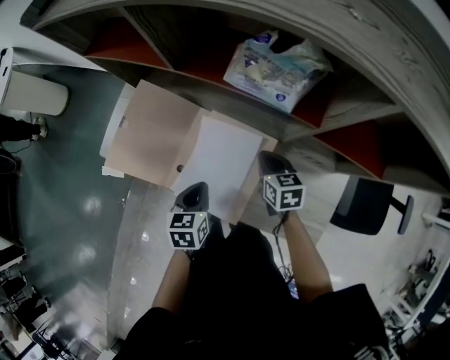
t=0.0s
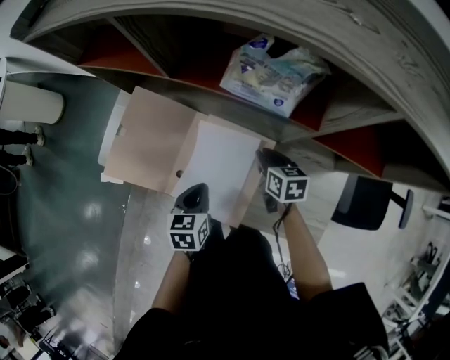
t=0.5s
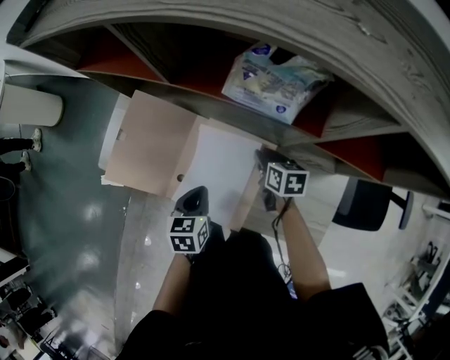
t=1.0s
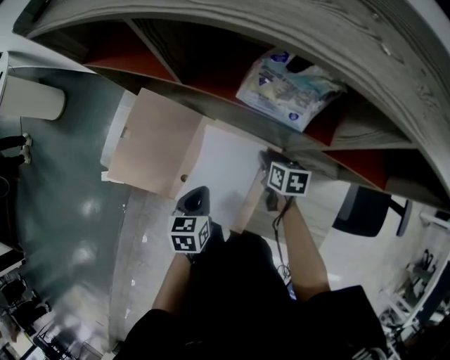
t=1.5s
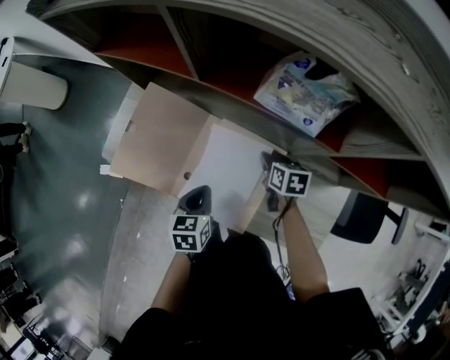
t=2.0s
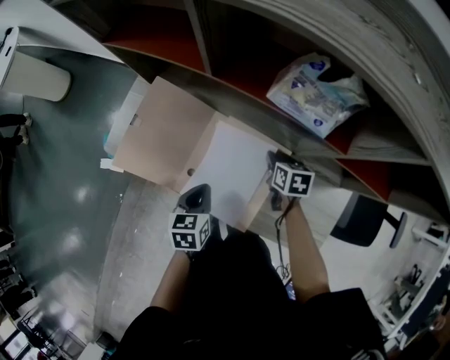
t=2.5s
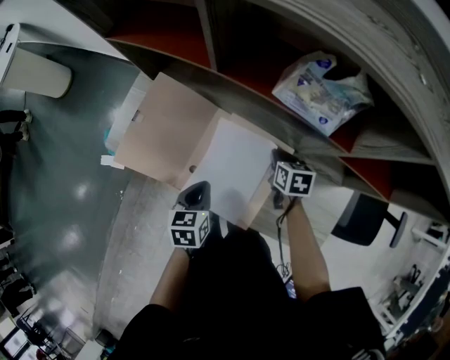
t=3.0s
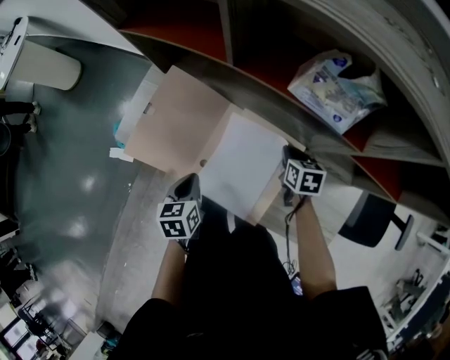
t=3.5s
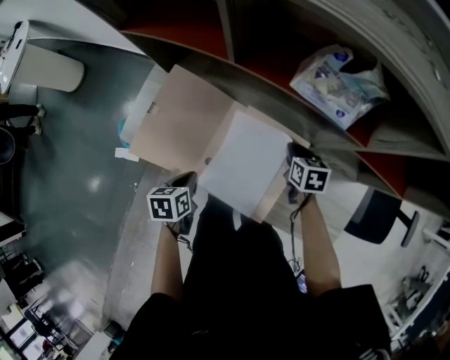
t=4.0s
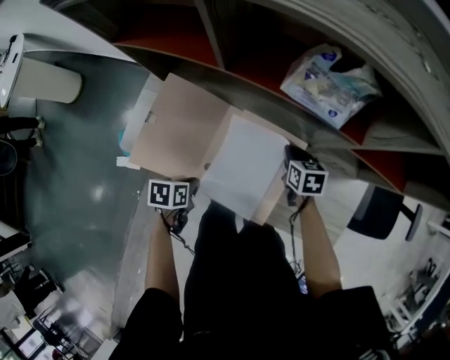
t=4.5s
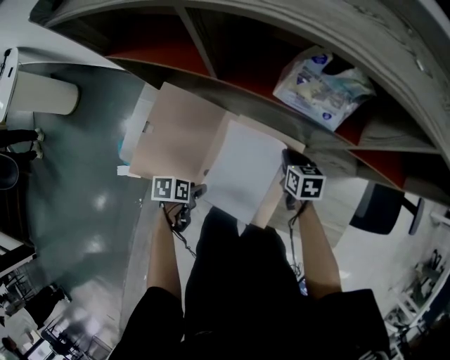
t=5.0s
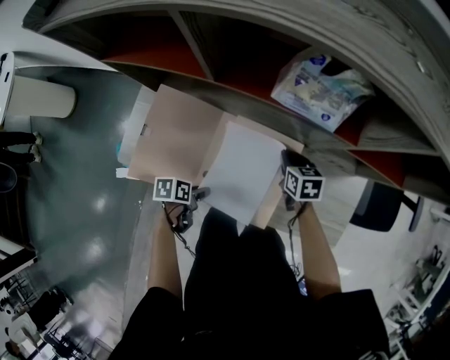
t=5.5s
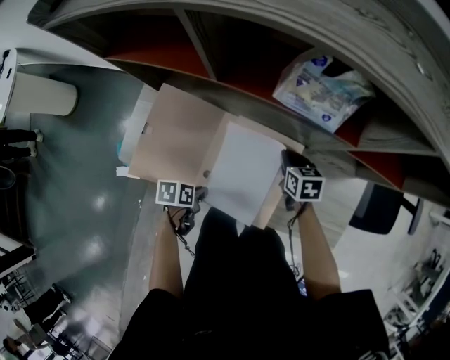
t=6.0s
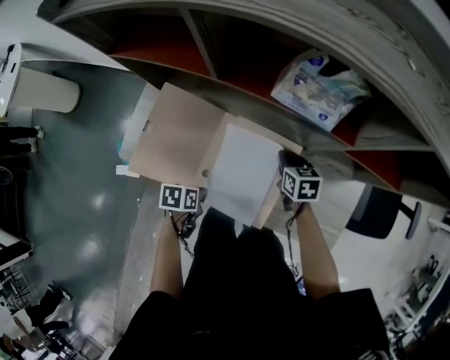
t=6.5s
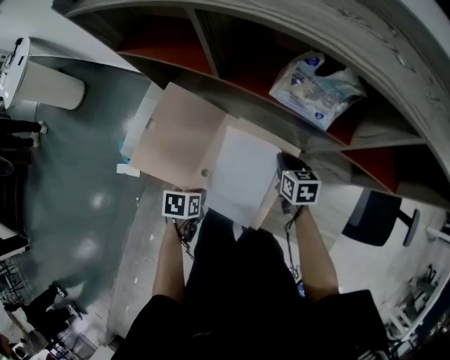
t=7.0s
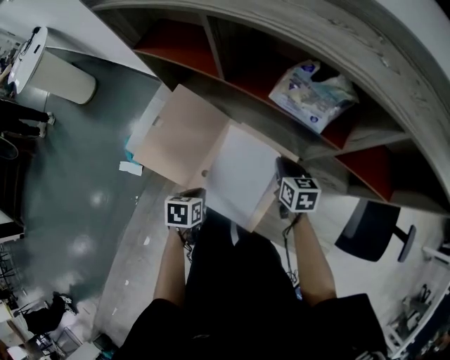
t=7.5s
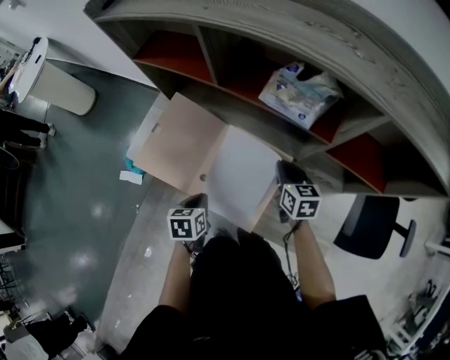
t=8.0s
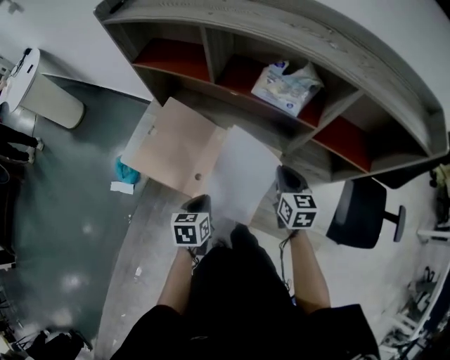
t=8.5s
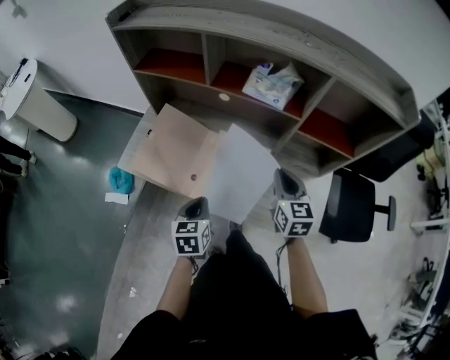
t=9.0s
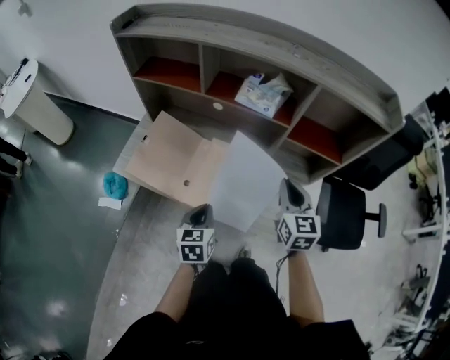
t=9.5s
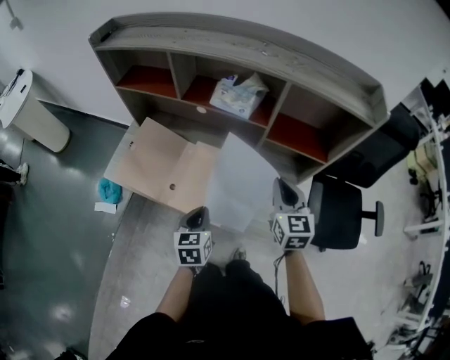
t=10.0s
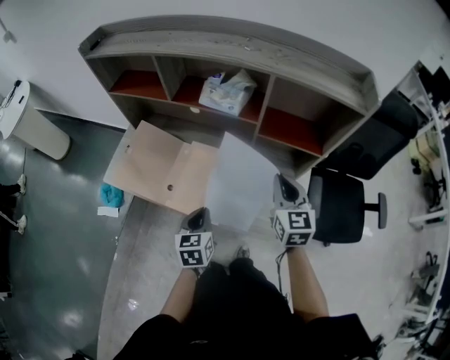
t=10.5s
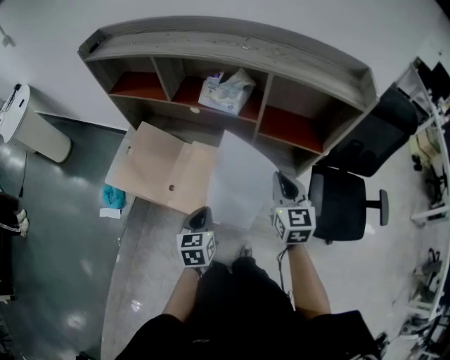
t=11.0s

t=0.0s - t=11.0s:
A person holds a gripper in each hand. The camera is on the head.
t=0.0s - t=2.0s: The right gripper moves some 5 cm, and opens up.
t=2.0s - t=3.5s: The left gripper goes some 10 cm to the left. The right gripper closes up.
t=3.5s - t=5.5s: The left gripper goes roughly 10 cm downward, rotates some 50 degrees, and opens its fingers.
t=5.5s - t=7.5s: Both grippers move upward, roughly 5 cm. The left gripper rotates roughly 30 degrees, and closes.
t=7.5s - t=9.0s: The left gripper moves upward and backward, roughly 15 cm, and changes its angle by about 30 degrees. The right gripper goes roughly 20 cm upward and backward, and turns by approximately 30 degrees.
t=9.0s - t=11.0s: The right gripper heads to the right and upward, covering some 10 cm. The left gripper goes about 10 cm to the right.

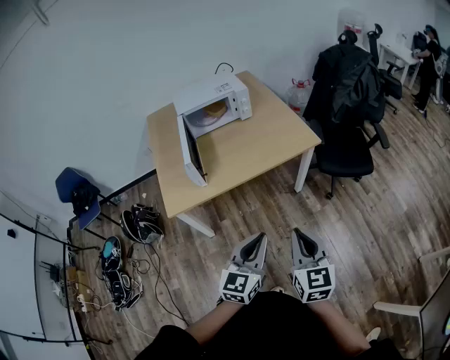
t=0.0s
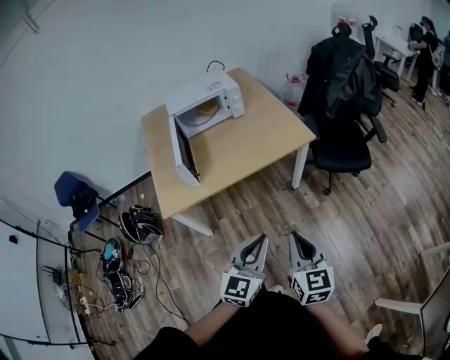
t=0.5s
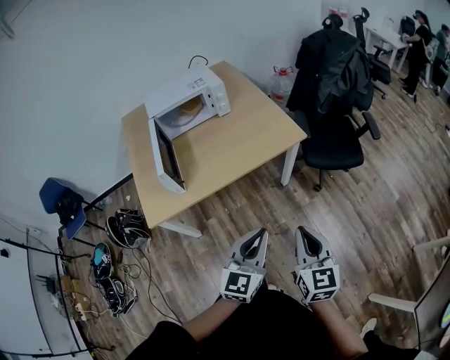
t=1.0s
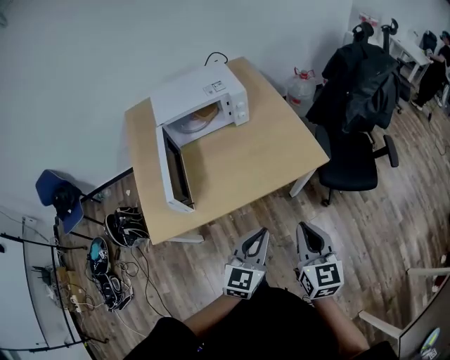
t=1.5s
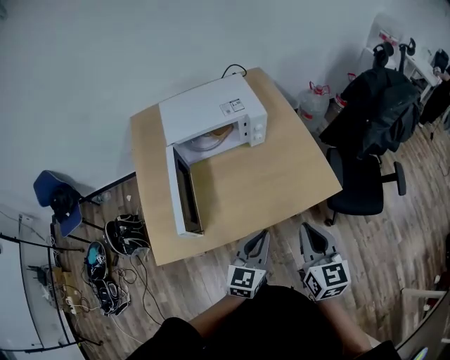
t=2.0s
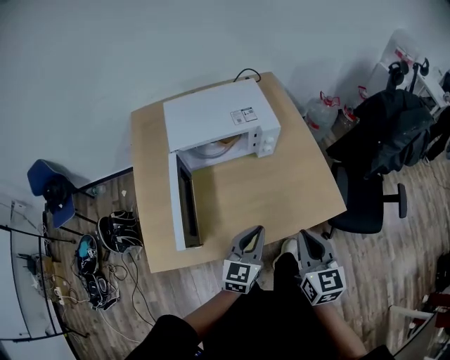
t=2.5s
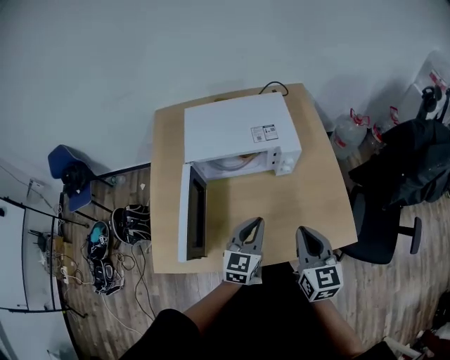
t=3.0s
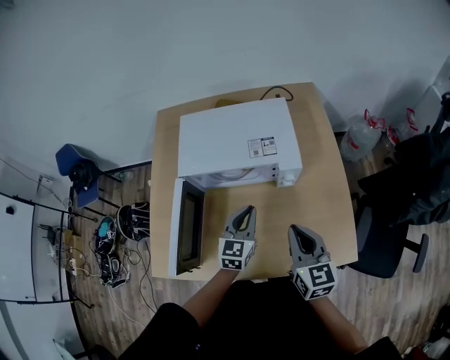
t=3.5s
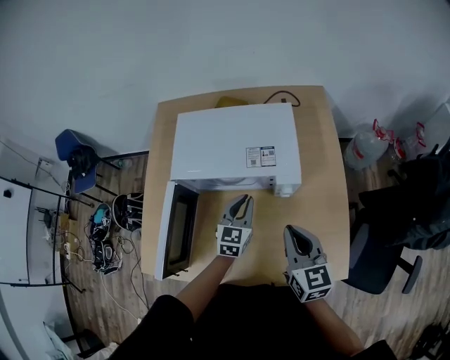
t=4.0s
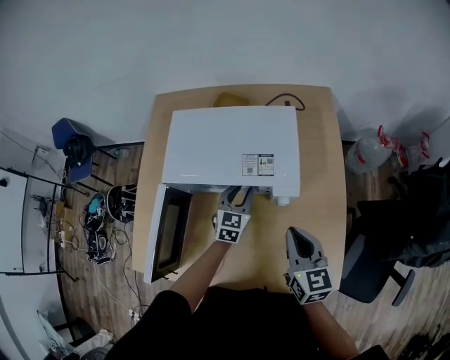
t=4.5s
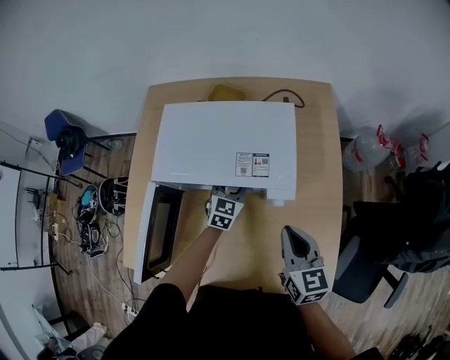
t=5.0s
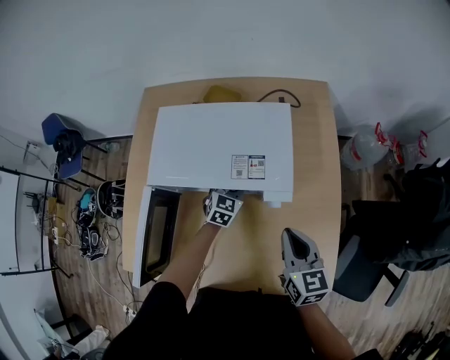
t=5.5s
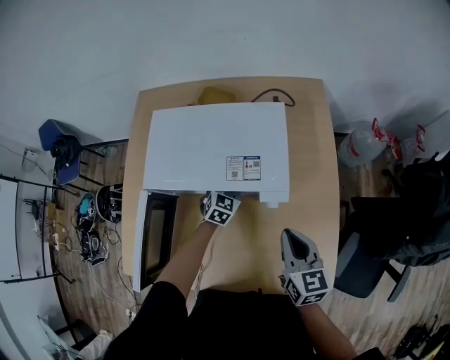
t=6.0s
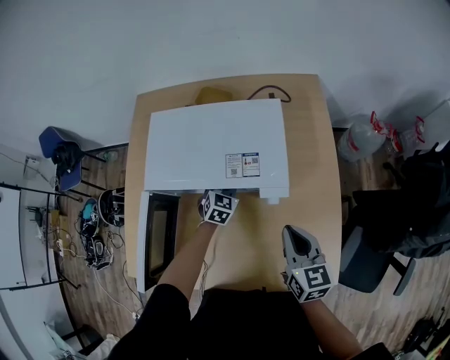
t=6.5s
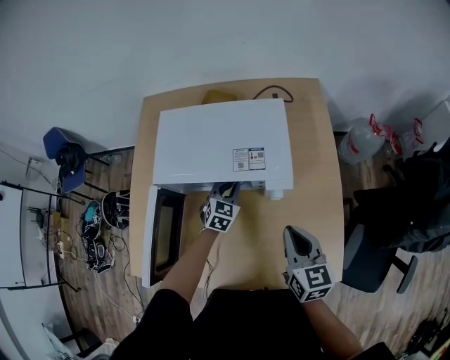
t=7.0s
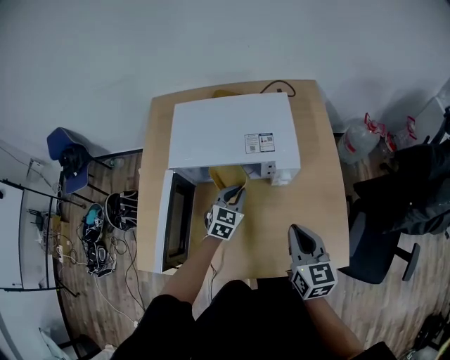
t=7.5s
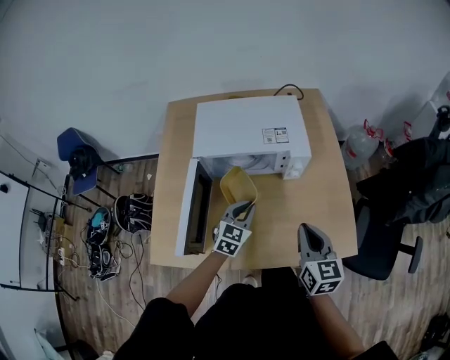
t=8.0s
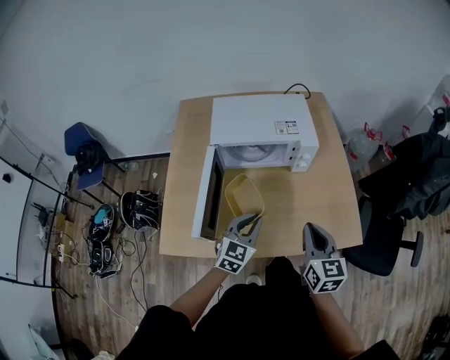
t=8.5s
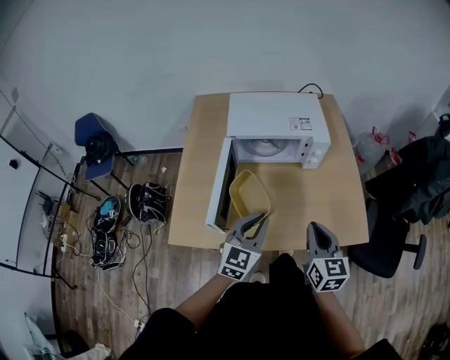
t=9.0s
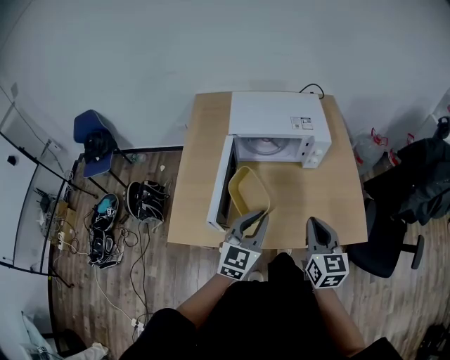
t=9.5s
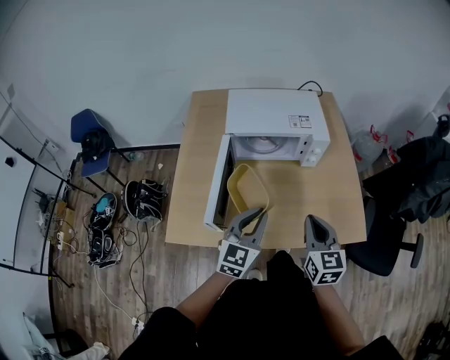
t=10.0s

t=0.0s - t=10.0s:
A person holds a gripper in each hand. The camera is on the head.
t=0.0s - t=2.0s: Both grippers travel together forward, some 35 cm.
t=2.0s - t=4.0s: The right gripper ends up roughly 30 cm from where it was, and changes its angle by approximately 30 degrees, while the left gripper ends up some 40 cm from where it was, and changes its angle by approximately 30 degrees.
t=4.0s - t=6.0s: The right gripper shifts some 5 cm forward. Meanwhile the left gripper heads forward and downward, covering about 15 cm, and opens up.
t=6.0s - t=8.0s: The left gripper is displaced backward and upward by roughly 25 cm, and closes up, while the right gripper is displaced backward by some 15 cm.
t=8.0s - t=10.0s: The left gripper is displaced backward and upward by some 20 cm, while the right gripper travels backward and to the left by approximately 10 cm.

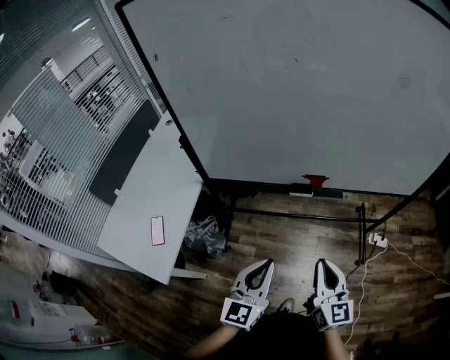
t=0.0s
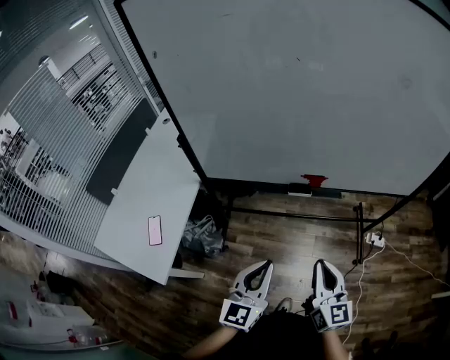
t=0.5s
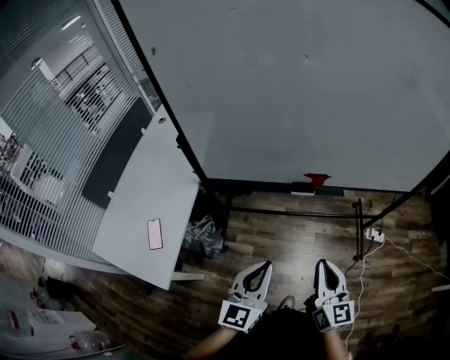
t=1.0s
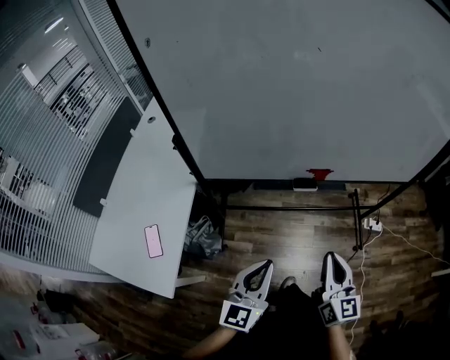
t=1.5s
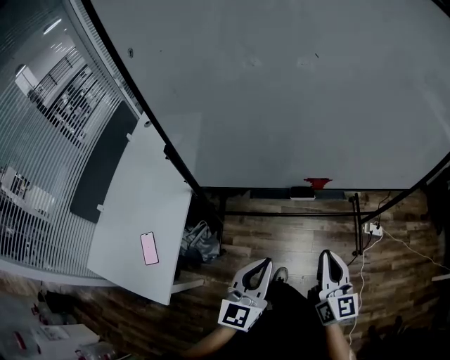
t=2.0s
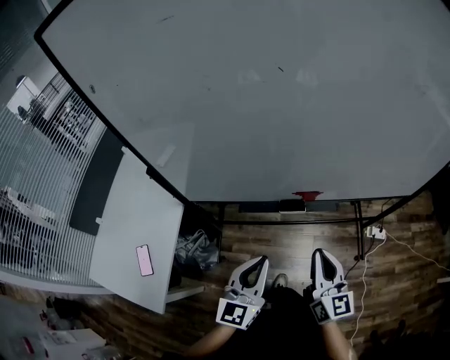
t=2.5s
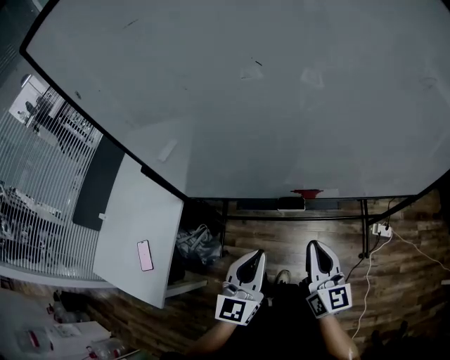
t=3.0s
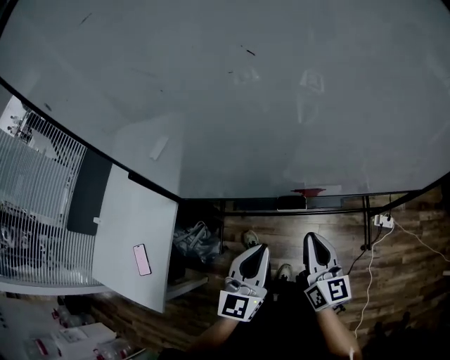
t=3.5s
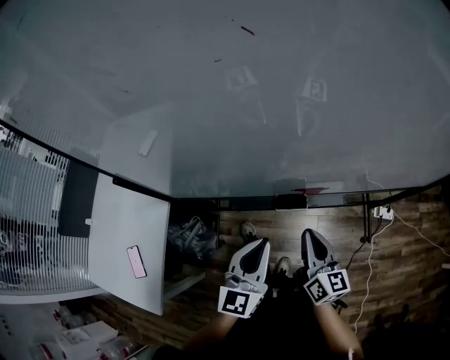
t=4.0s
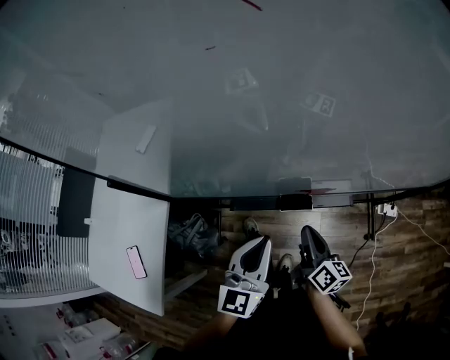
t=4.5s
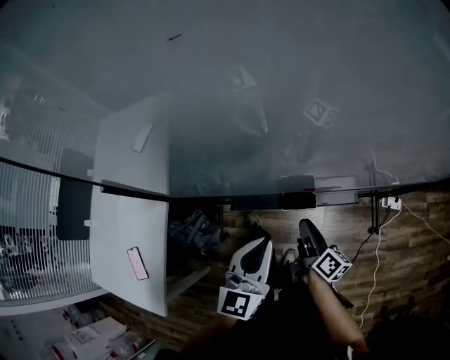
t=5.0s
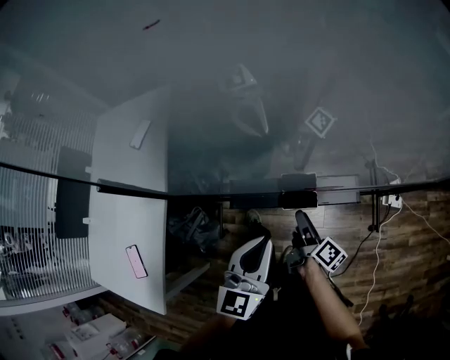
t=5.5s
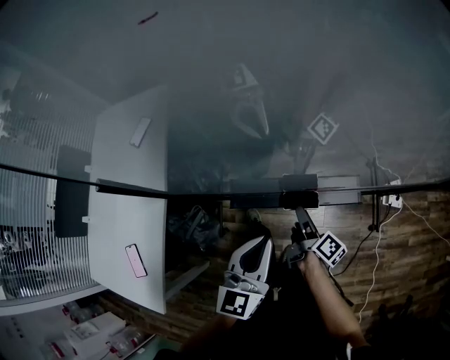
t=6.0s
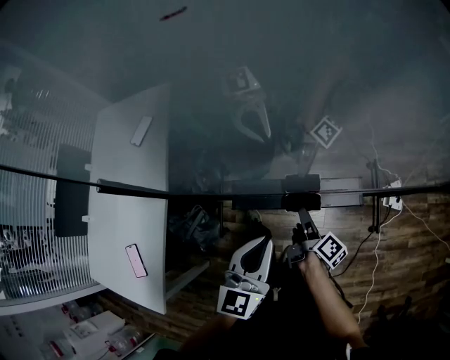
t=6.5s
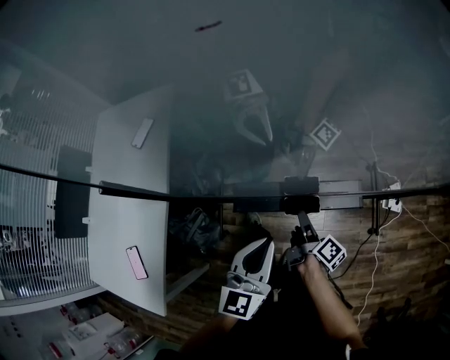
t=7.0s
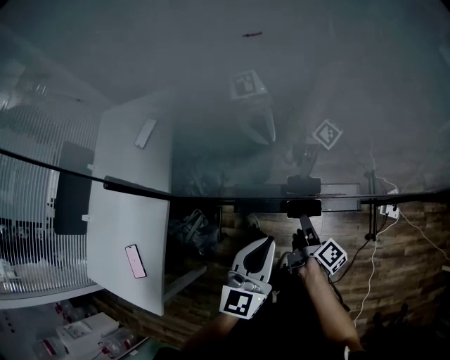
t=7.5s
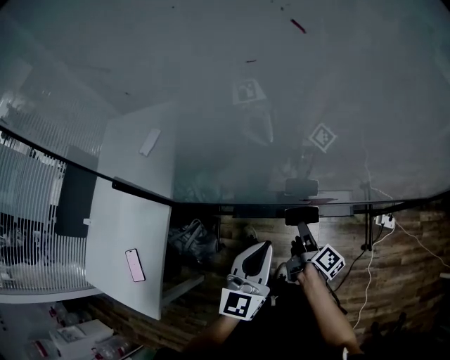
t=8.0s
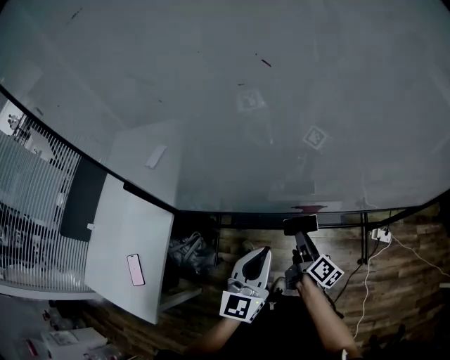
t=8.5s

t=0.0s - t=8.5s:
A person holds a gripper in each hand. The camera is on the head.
t=0.0s - t=2.0s: The left gripper is displaced forward and to the left by about 10 cm, while the right gripper shifts some 5 cm forward.
t=2.0s - t=4.0s: The right gripper goes about 20 cm forward and downward; the left gripper travels forward by about 15 cm.
t=4.0s - t=6.5s: The left gripper moves roughly 5 cm. Meanwhile the right gripper moves downward and forward, approximately 20 cm, rotates around the line of its fingers by some 50 degrees, clockwise from behind, and opens its fingers.
t=6.5s - t=8.5s: The left gripper shifts by roughly 5 cm; the right gripper travels upward by approximately 10 cm.
